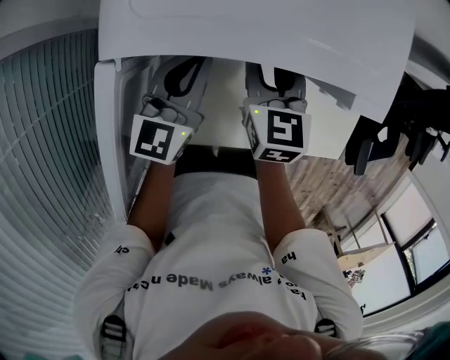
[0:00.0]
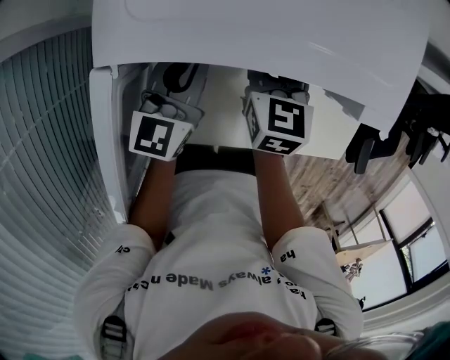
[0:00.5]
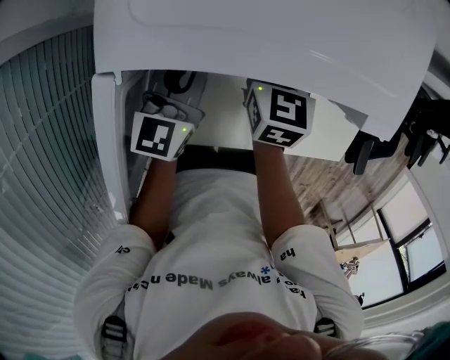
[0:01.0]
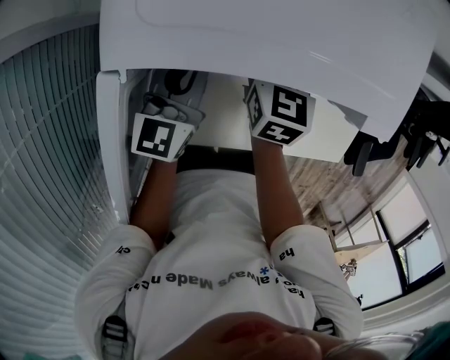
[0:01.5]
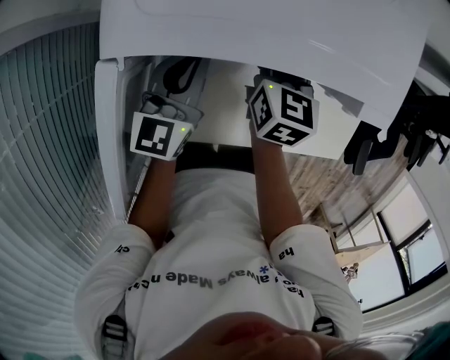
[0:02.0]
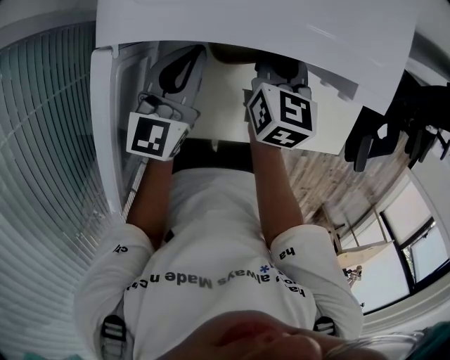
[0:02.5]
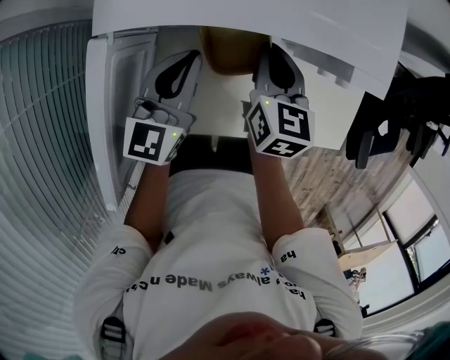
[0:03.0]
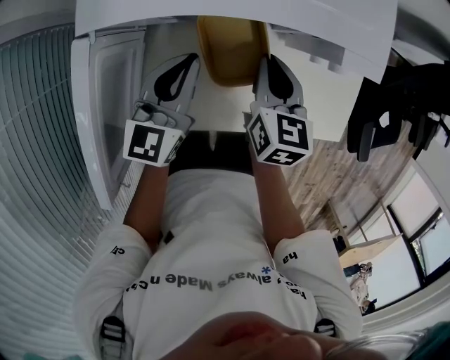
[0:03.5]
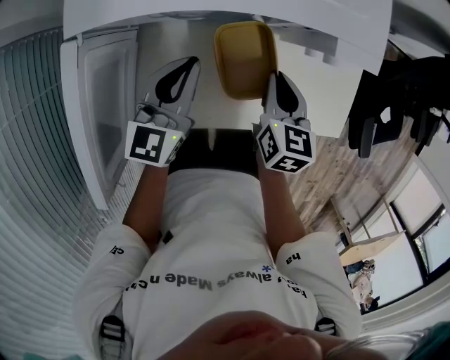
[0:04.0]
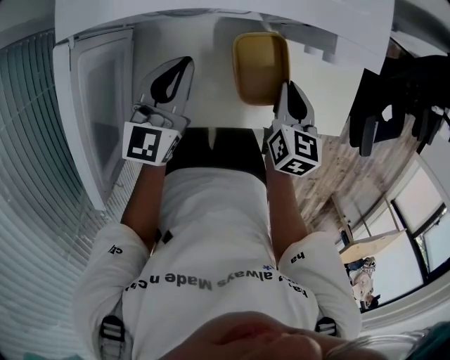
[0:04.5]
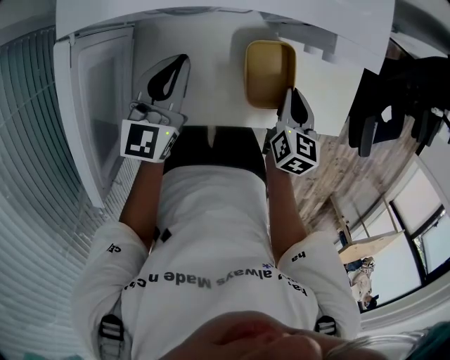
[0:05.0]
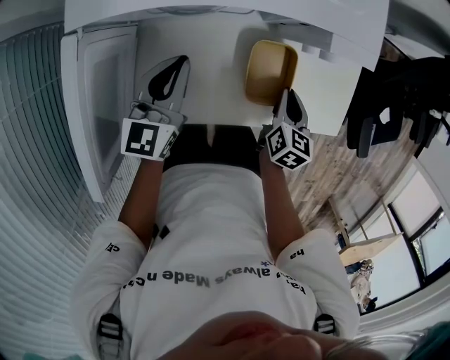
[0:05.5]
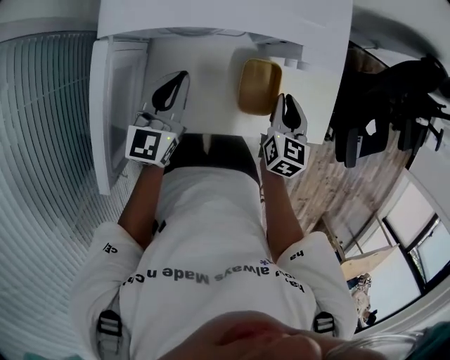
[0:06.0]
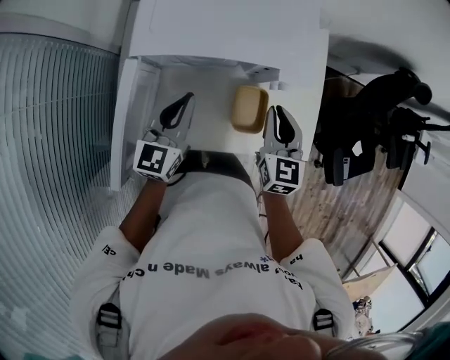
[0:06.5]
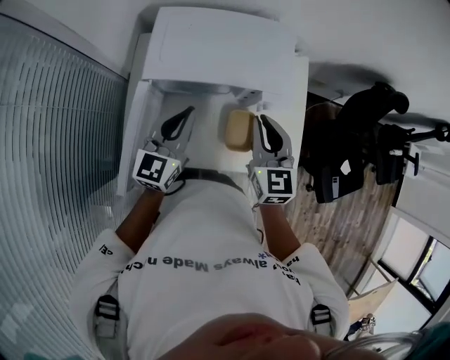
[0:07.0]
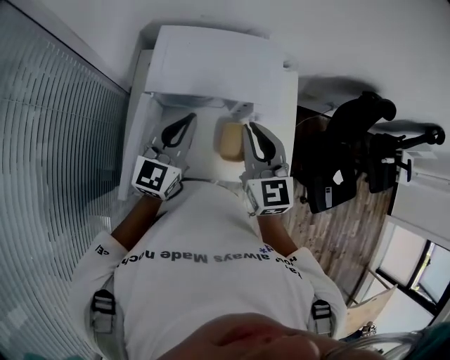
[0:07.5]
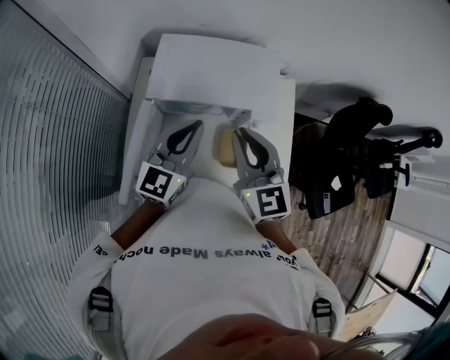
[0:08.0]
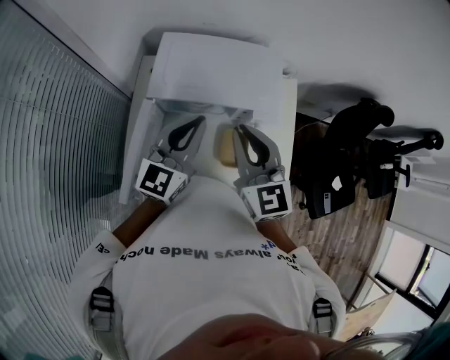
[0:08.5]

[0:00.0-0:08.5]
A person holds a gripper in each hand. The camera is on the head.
0:00.0 to 0:02.0: The right gripper closes up.
0:02.0 to 0:04.0: The left gripper is displaced backward and to the right by about 10 cm; the right gripper shifts about 20 cm backward and to the right.
0:04.0 to 0:06.5: The grippers both shift upward by some 15 cm. The right gripper changes its angle by approximately 20 degrees.
0:06.5 to 0:08.5: Both grippers travel together upward, about 25 cm. The right gripper turns by some 30 degrees.

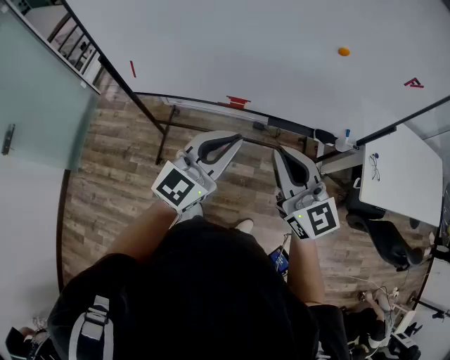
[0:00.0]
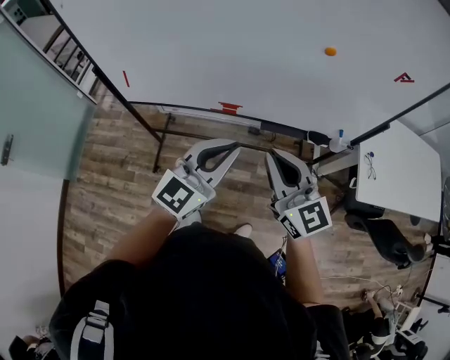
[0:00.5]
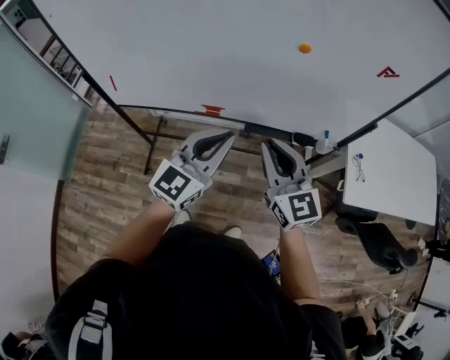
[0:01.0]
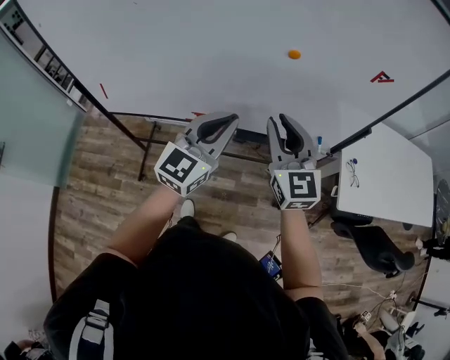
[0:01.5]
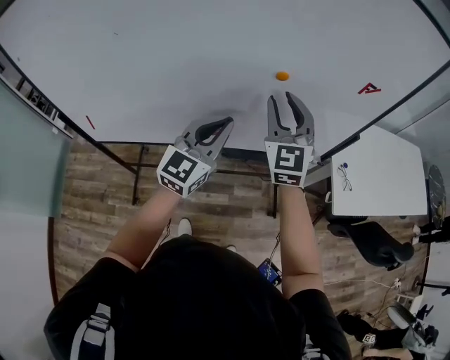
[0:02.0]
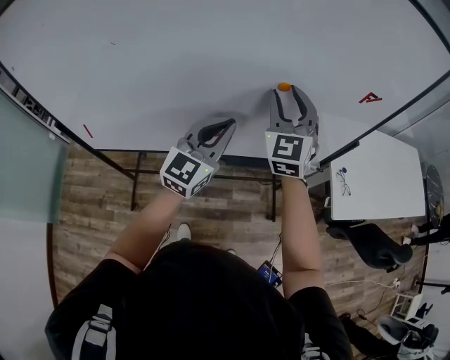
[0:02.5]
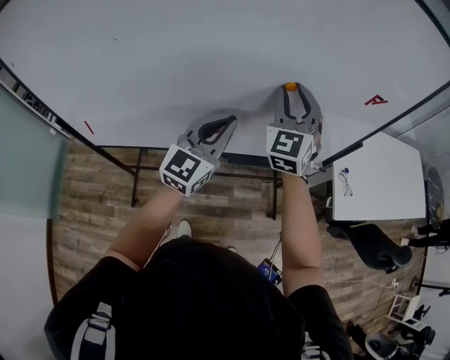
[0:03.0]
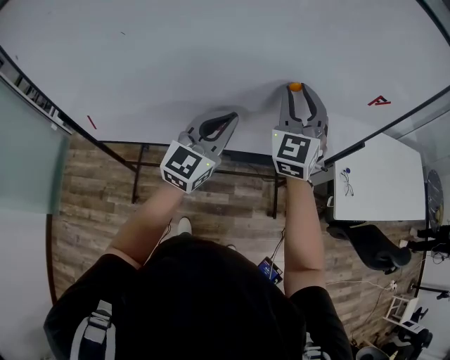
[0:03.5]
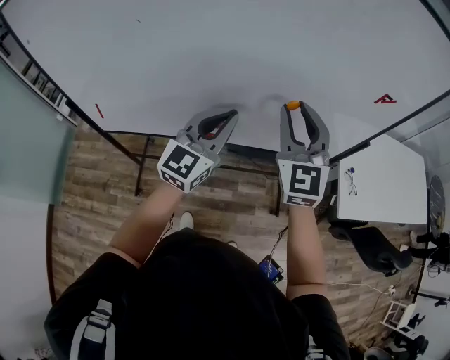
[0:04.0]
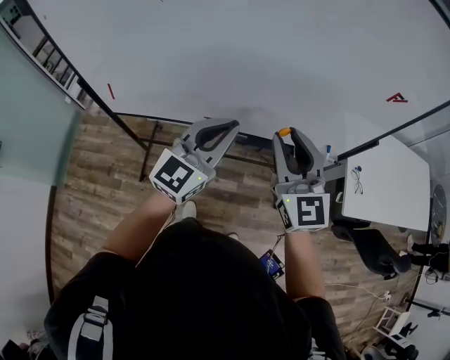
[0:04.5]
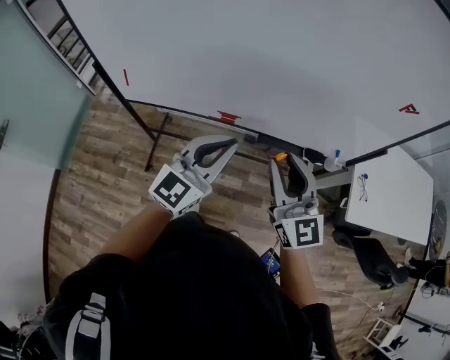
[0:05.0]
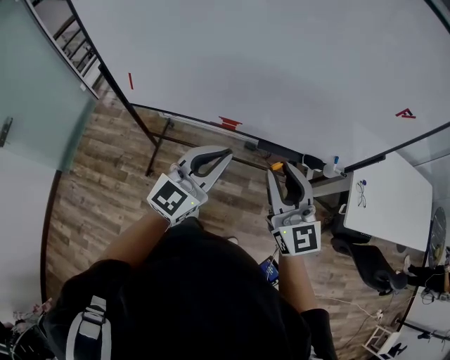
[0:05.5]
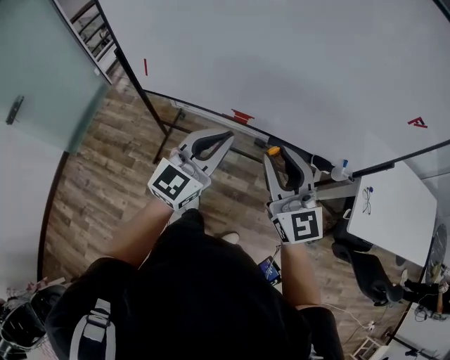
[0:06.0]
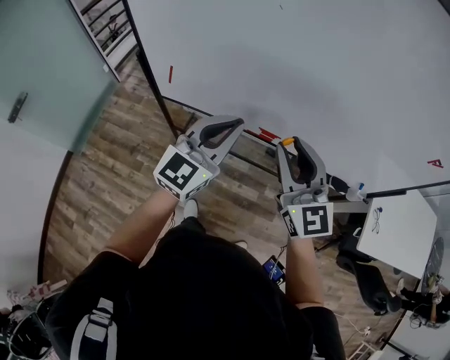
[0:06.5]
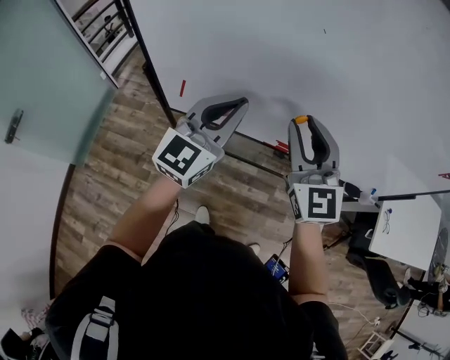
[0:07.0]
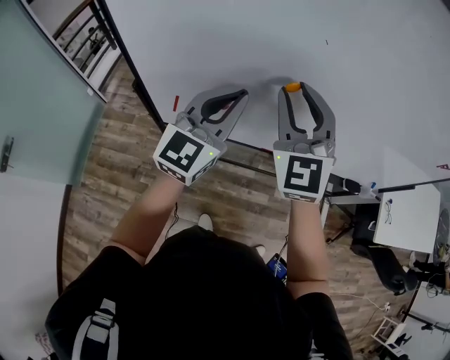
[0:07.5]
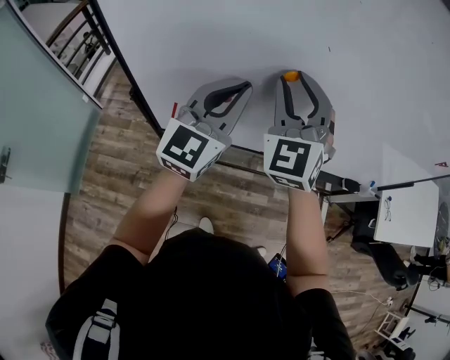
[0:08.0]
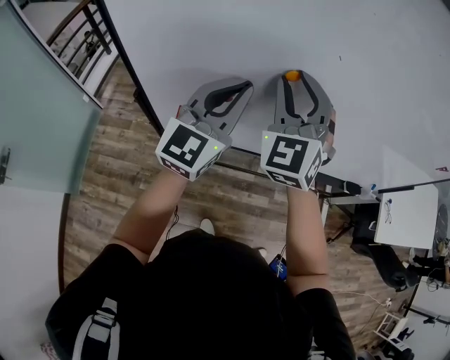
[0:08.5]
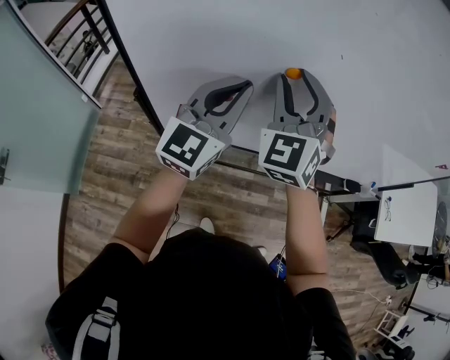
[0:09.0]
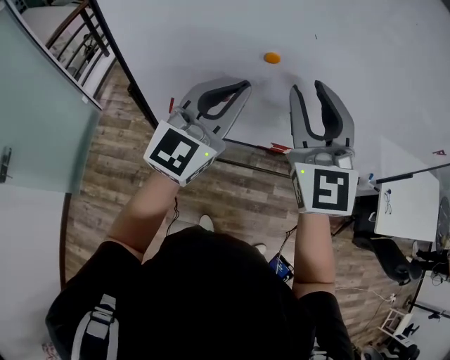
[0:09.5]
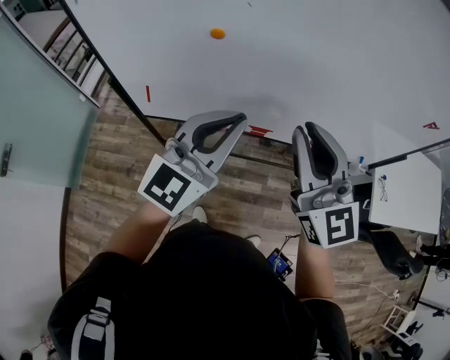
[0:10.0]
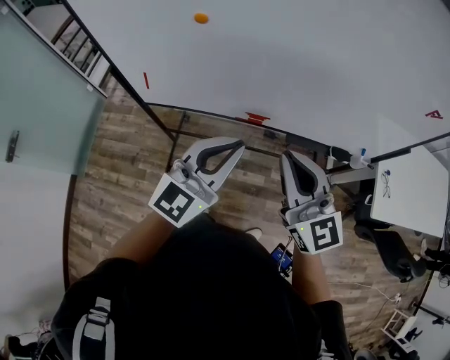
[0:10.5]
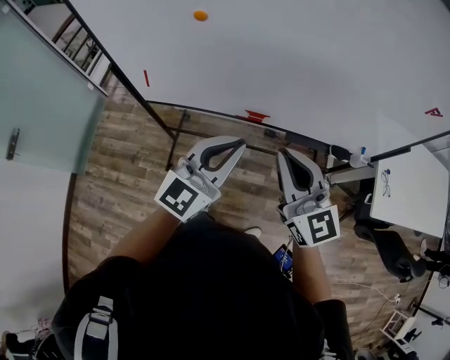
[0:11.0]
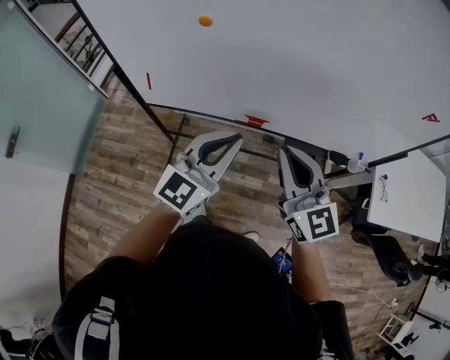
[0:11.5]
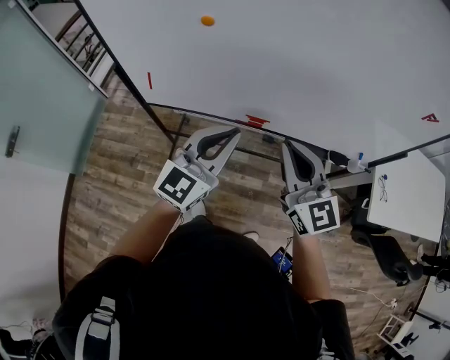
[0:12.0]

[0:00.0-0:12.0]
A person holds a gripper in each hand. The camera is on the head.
0:00.0 to 0:02.0: The two grippers go roughly 25 cm forward and to the right. The right gripper turns by roughly 40 degrees, and opens up.
0:02.0 to 0:04.0: The right gripper moves about 5 cm.
0:04.0 to 0:06.0: The left gripper heads backward and to the left, covering approximately 15 cm. The right gripper is displaced backward, to the left and downward by approximately 20 cm, and swivels approximately 40 degrees.
0:06.0 to 0:08.0: Both grippers travel together to the left and forward, approximately 35 cm. The right gripper changes its angle by some 50 degrees.
0:08.0 to 0:10.0: The two grippers go roughly 20 cm to the right and backward. The right gripper rotates roughly 40 degrees.
0:10.0 to 0:12.0: Both grippers travel together downward, some 10 cm.

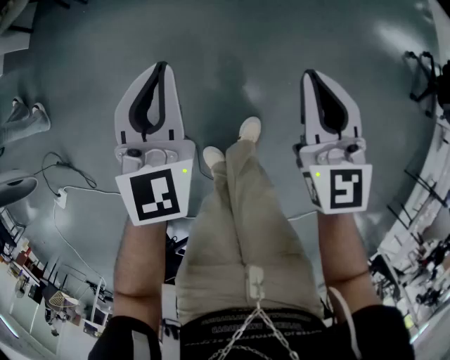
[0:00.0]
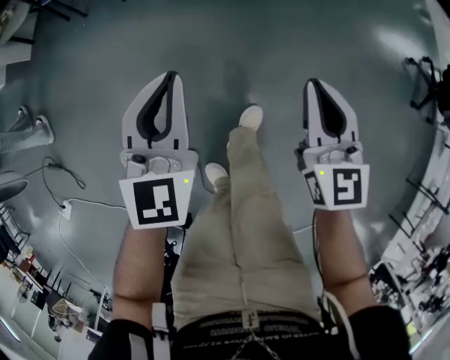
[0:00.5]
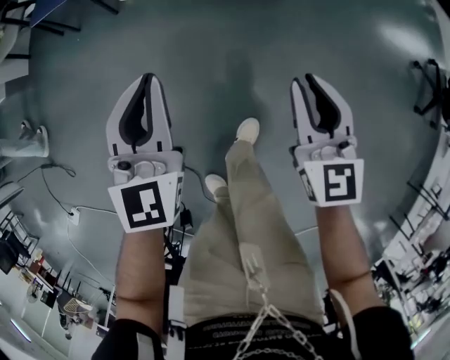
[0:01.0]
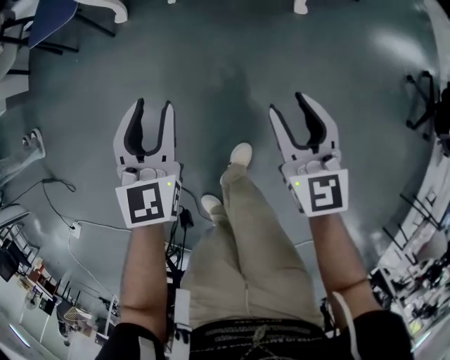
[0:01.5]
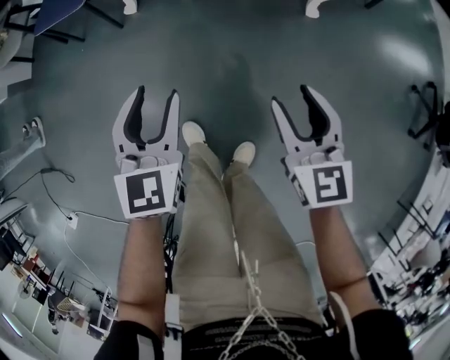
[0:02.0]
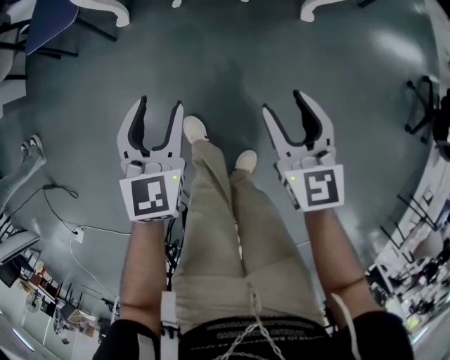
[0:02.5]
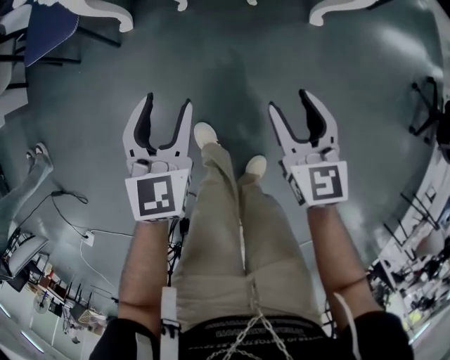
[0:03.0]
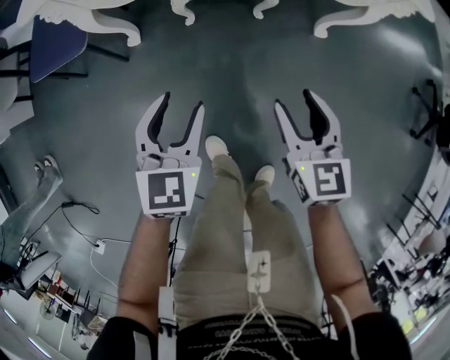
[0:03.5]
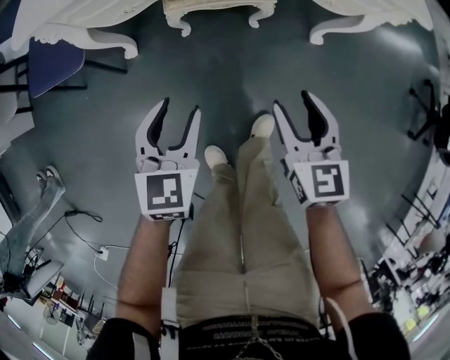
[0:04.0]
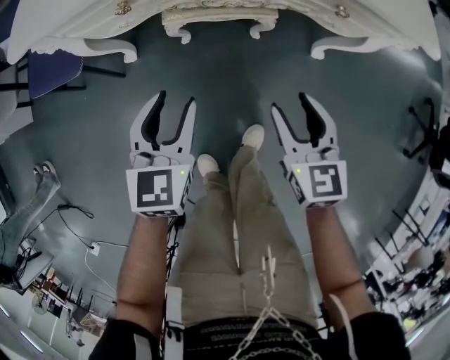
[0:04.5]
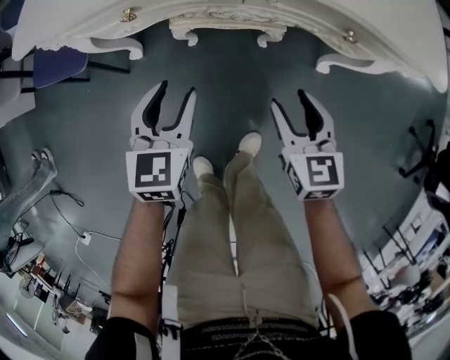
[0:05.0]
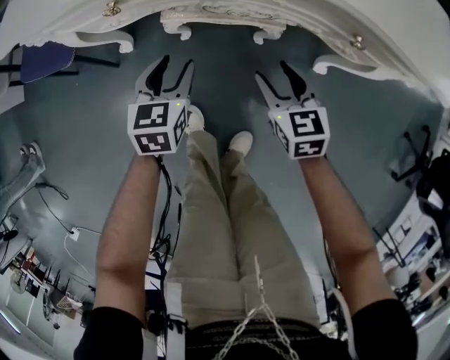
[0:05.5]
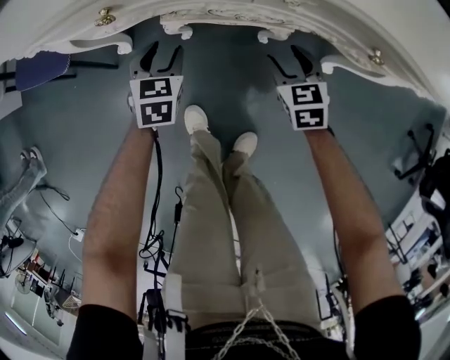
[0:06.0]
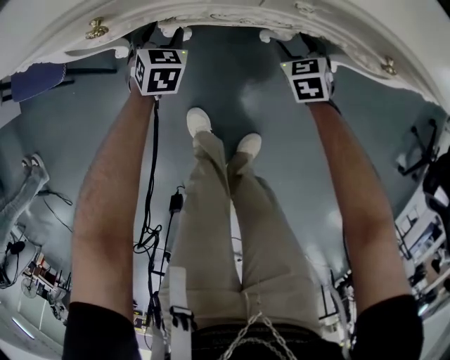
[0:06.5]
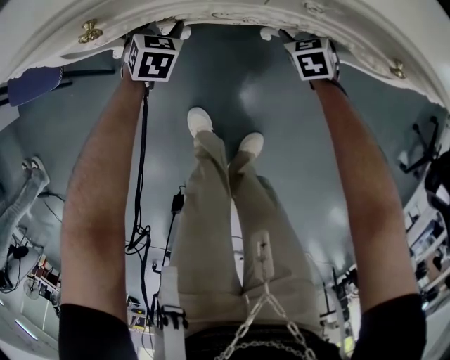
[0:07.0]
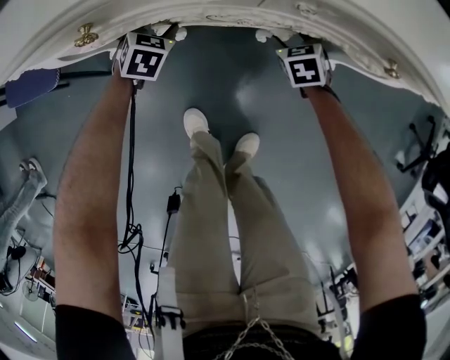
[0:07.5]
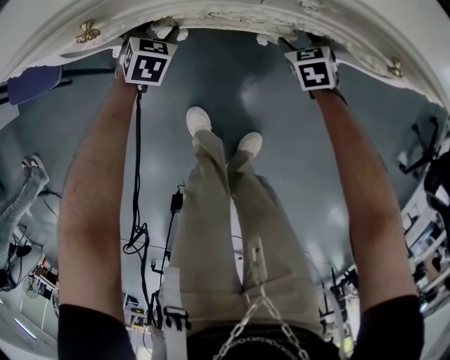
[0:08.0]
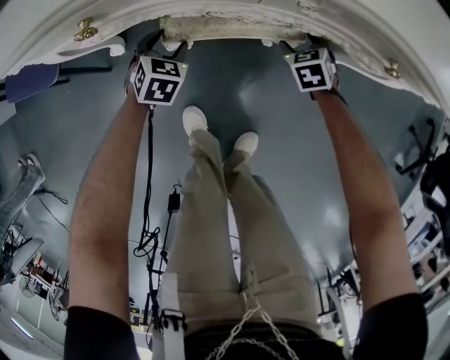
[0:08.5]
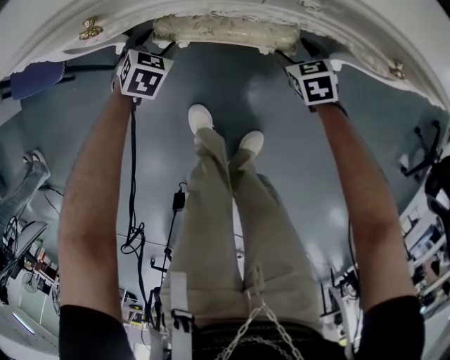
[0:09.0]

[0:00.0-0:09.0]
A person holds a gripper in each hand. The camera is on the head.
0:00.0 to 0:02.0: Both grippers move forward, some 20 cm. The left gripper opens; the right gripper opens.
0:02.0 to 0:04.5: Both grippers travel together forward, approximately 25 cm.
0:04.5 to 0:07.0: The two grippers go some 35 cm downward and forward. The right gripper swivels approximately 30 degrees; the left gripper swivels roughly 30 degrees.
0:07.0 to 0:09.0: Both grippers move backward, some 5 cm.
